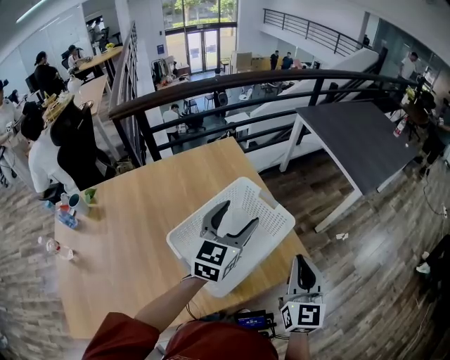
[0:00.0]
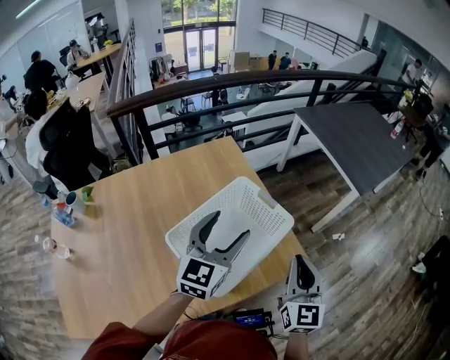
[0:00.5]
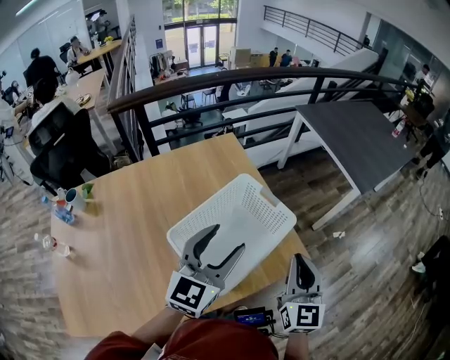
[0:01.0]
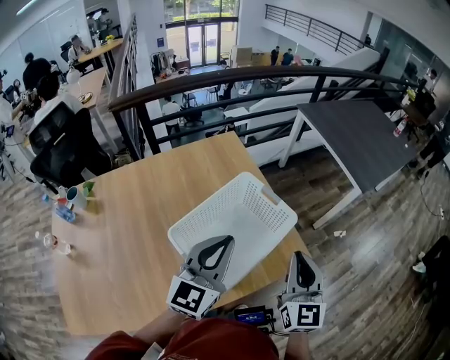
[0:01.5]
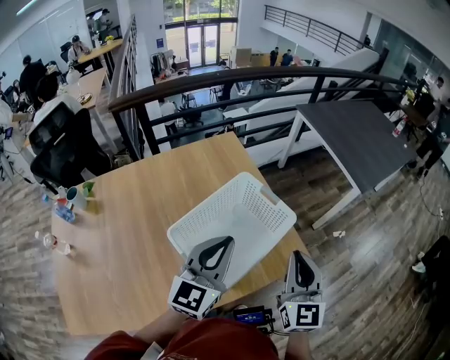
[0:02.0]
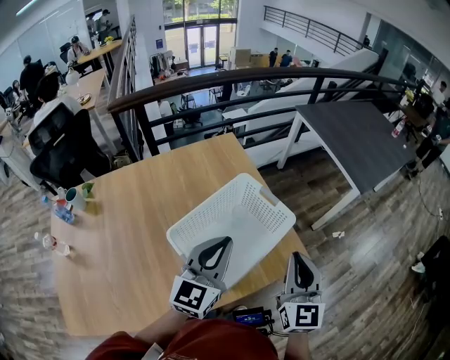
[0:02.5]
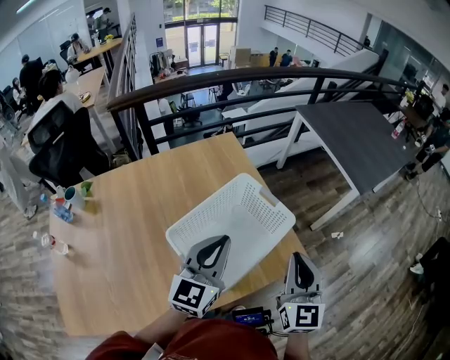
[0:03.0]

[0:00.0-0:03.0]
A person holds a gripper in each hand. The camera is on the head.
0:00.0 to 0:01.5: The left gripper shifts approximately 10 cm backward, and closes.
0:01.5 to 0:03.0: The grippers move only a little.

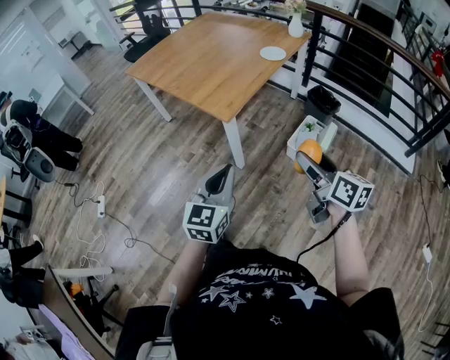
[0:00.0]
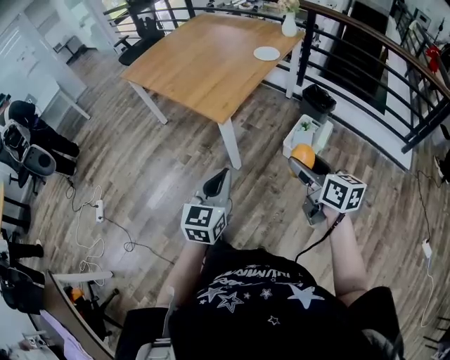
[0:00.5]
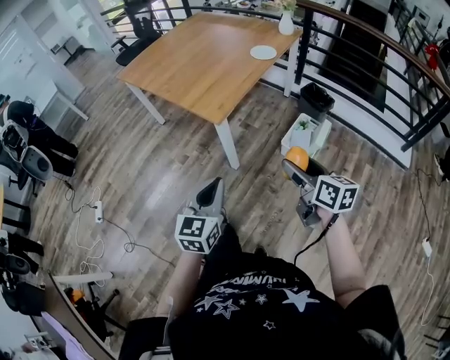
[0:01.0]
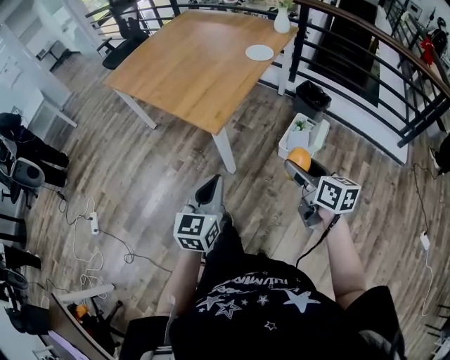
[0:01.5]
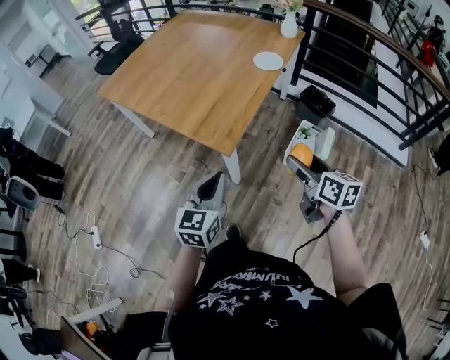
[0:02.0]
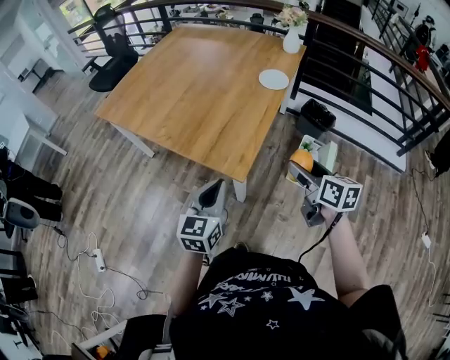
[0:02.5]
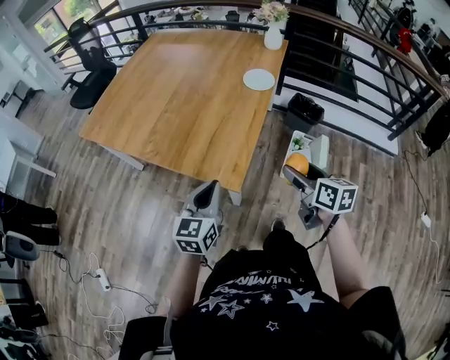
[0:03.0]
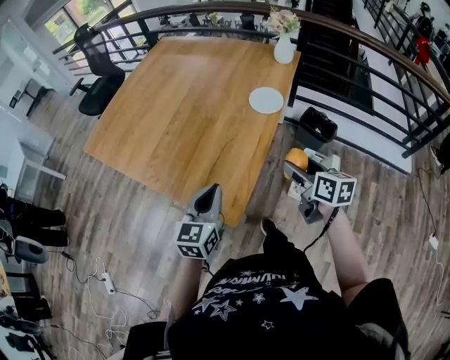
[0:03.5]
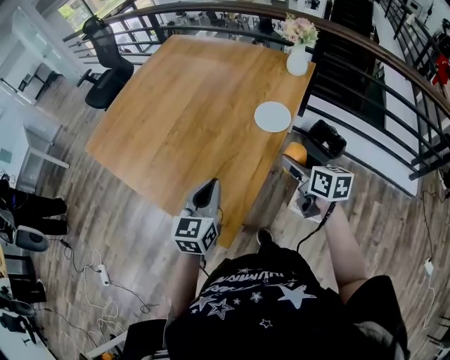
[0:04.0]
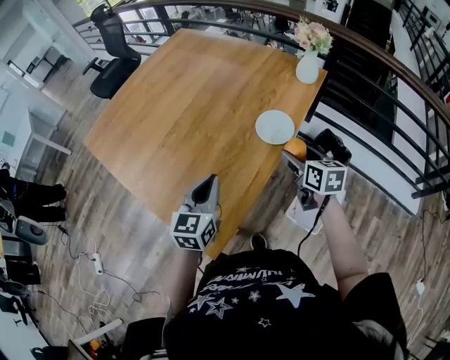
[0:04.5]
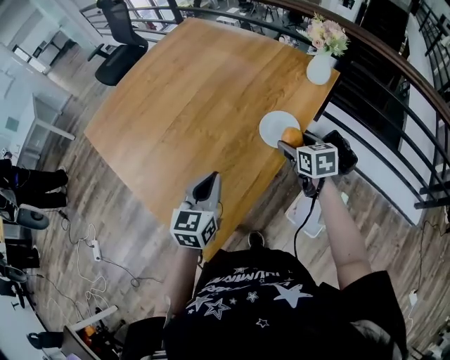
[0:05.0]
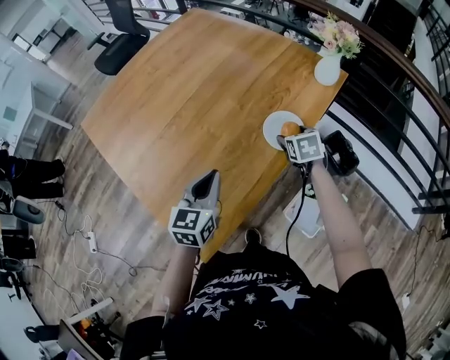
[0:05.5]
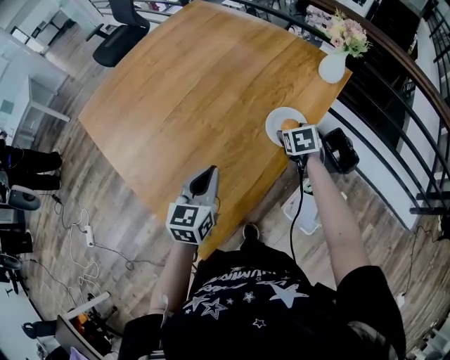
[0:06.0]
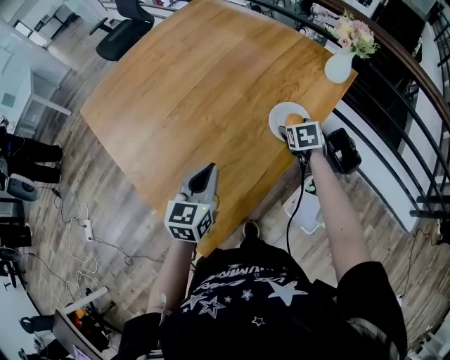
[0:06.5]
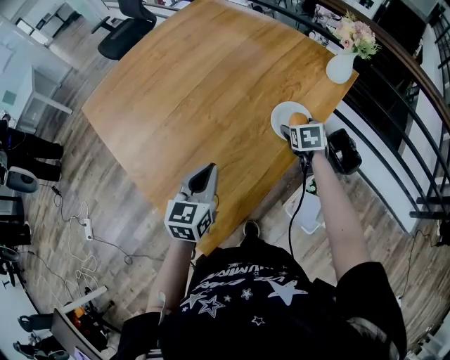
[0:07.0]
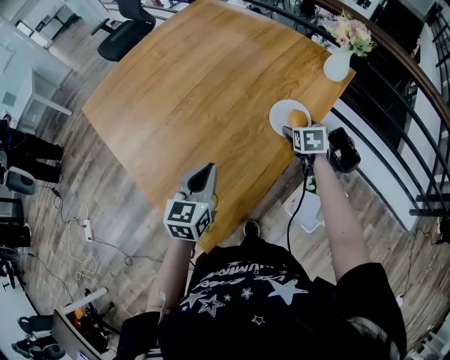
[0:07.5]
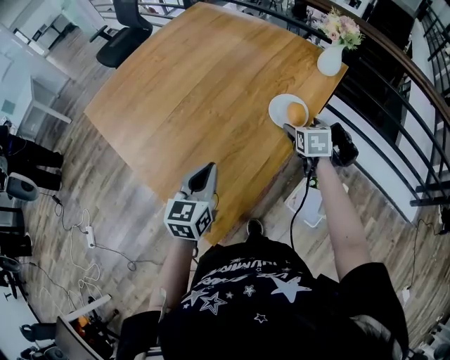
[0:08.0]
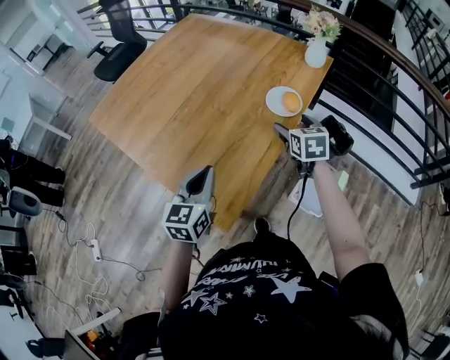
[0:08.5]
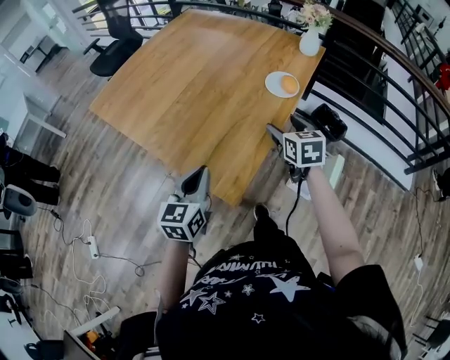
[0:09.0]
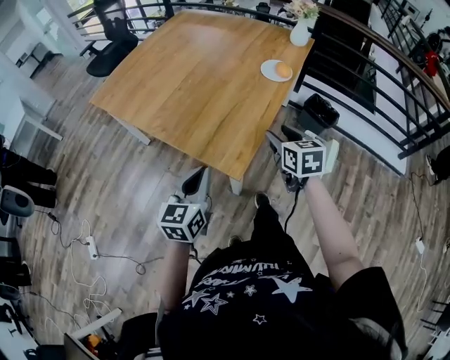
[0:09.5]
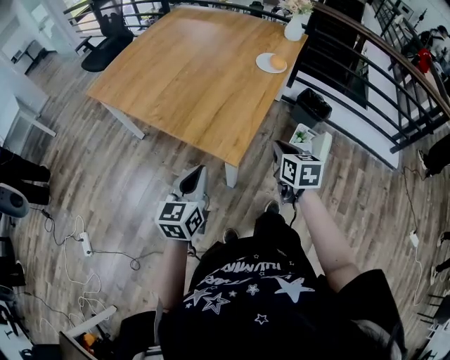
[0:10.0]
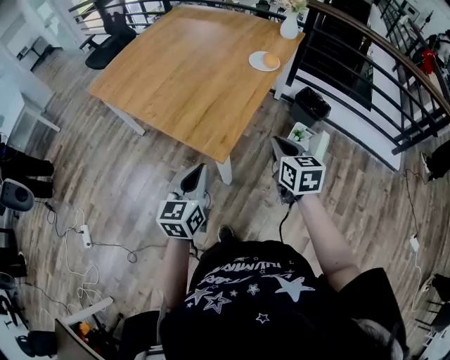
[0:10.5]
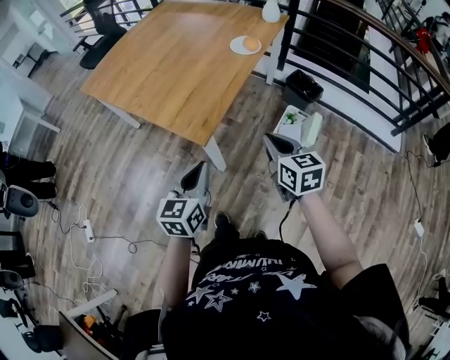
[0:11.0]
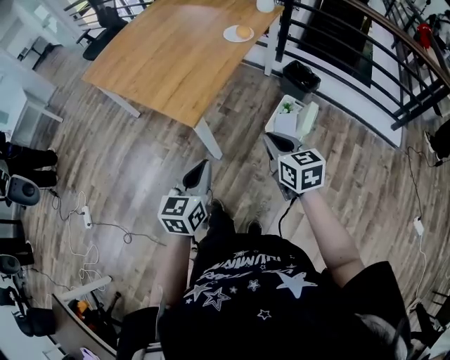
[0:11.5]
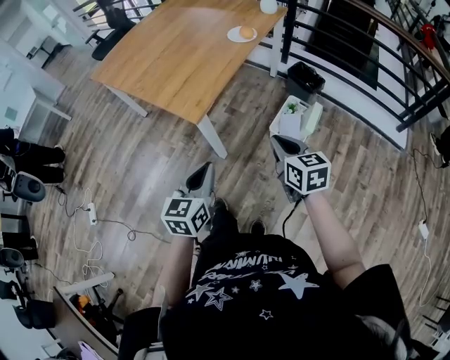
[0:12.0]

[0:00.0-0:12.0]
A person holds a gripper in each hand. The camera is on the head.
0:00.0 to 0:02.0: The two grippers go about 20 cm forward.
0:02.0 to 0:04.0: The grippers both shift forward by some 35 cm.
0:04.0 to 0:06.0: The right gripper moves forward and downward, about 25 cm, and points its fingers some 30 degrees further downward. Meanwhile the left gripper travels forward by about 10 cm.
0:06.0 to 0:08.0: The left gripper is displaced backward by about 5 cm; the right gripper goes roughly 10 cm upward and backward.
0:08.0 to 0:10.0: Both grippers move backward, approximately 35 cm. The right gripper closes its fingers.
0:10.0 to 0:12.0: The right gripper shifts about 25 cm backward and to the right. The left gripper travels to the right and backward by roughly 25 cm.

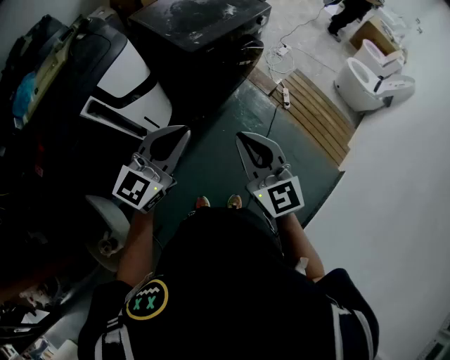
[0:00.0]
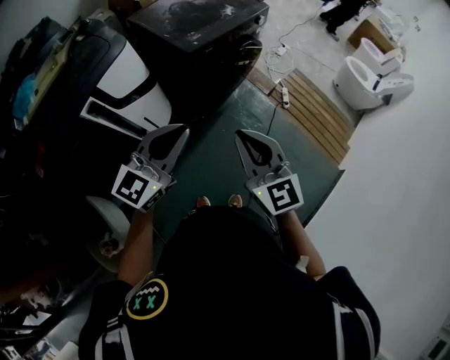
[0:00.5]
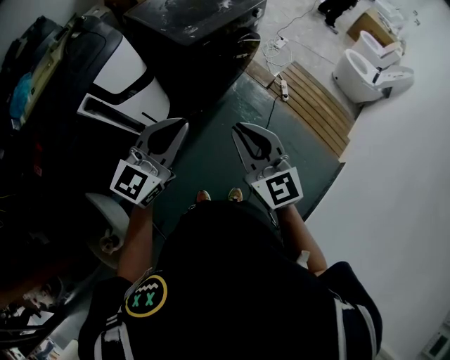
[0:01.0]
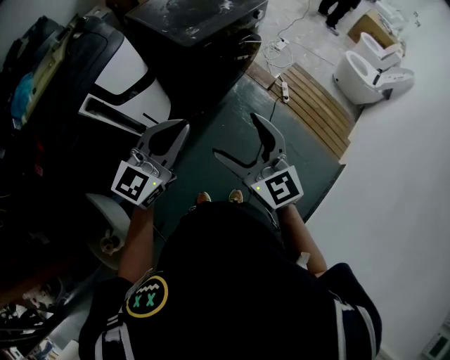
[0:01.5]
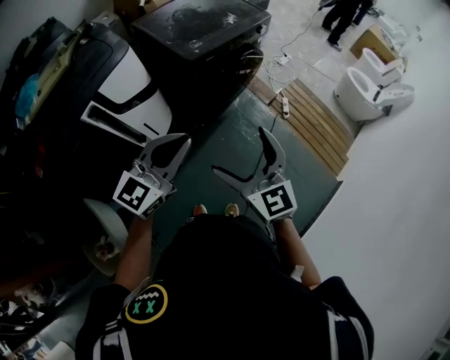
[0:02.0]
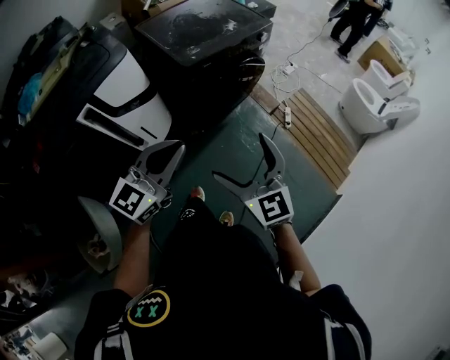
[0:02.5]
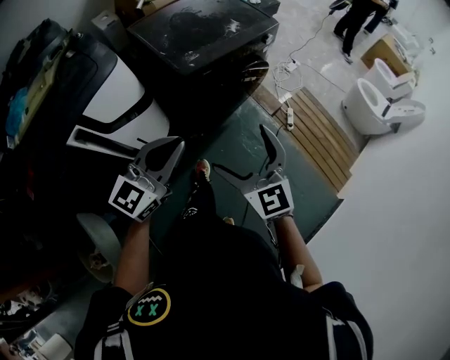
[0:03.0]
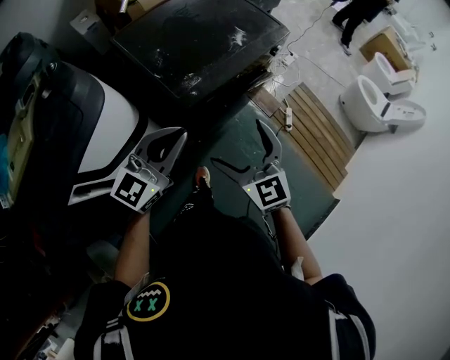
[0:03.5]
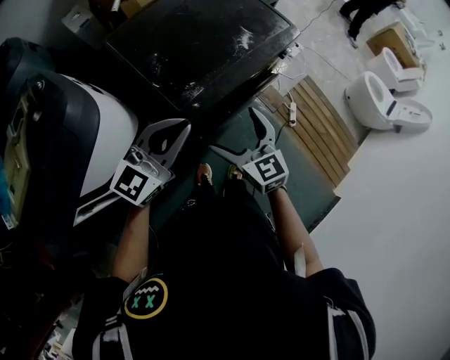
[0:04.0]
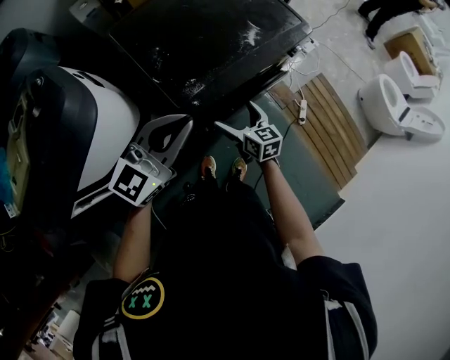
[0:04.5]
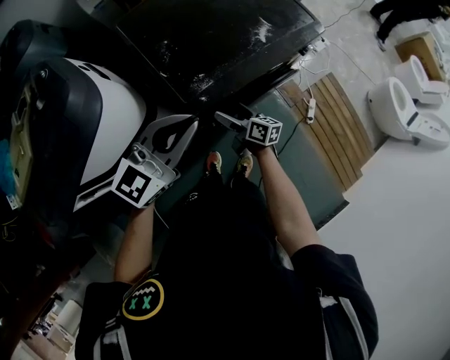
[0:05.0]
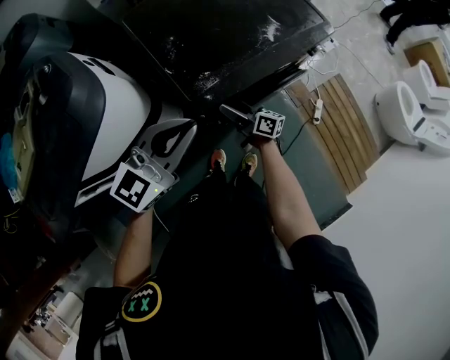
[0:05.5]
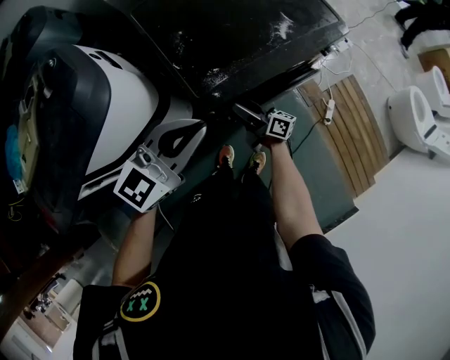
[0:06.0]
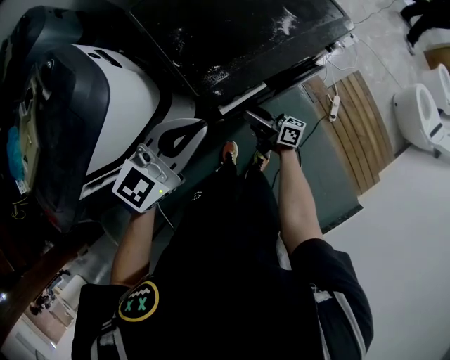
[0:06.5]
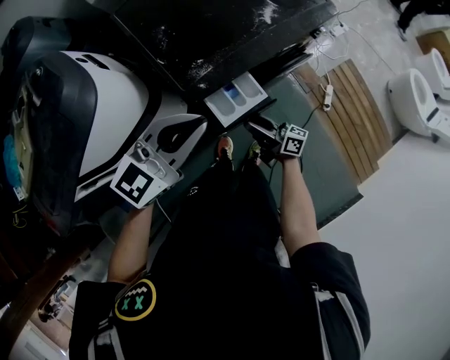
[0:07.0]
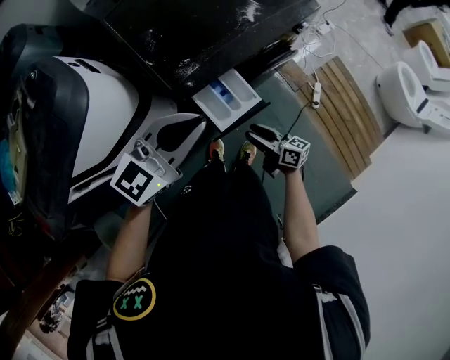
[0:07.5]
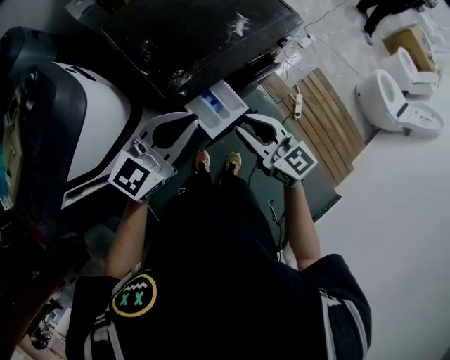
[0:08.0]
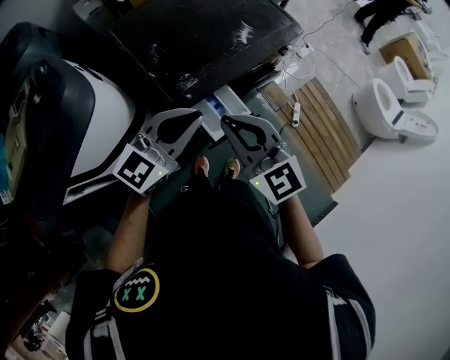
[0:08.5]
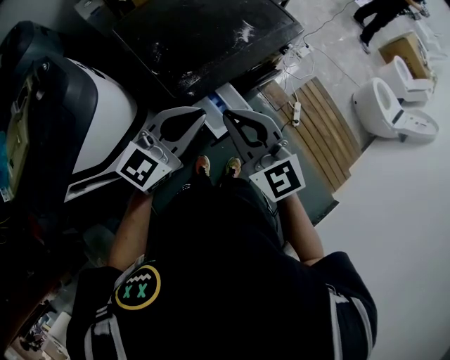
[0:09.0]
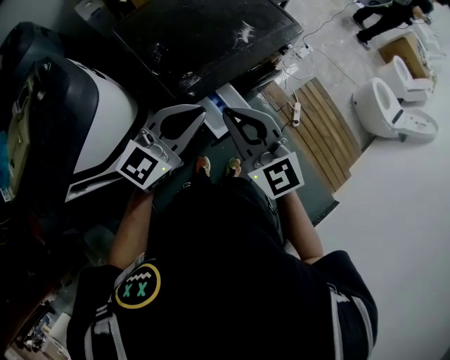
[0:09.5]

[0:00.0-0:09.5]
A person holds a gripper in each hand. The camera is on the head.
0:00.0 to 0:02.0: The right gripper opens up.
0:02.0 to 0:04.0: The two grippers travel together, forward, some 40 cm.
0:04.0 to 0:05.5: The right gripper is displaced downward and forward by some 20 cm, and rotates around the line of its fingers by roughly 60 degrees, clockwise from behind.
0:05.5 to 0:07.5: The left gripper heads to the right, covering roughly 10 cm. The right gripper travels backward and to the right by approximately 20 cm, and closes up.
0:07.5 to 0:09.5: The right gripper goes about 35 cm upward, and rolls counterclockwise, seen from behind, by some 60 degrees.

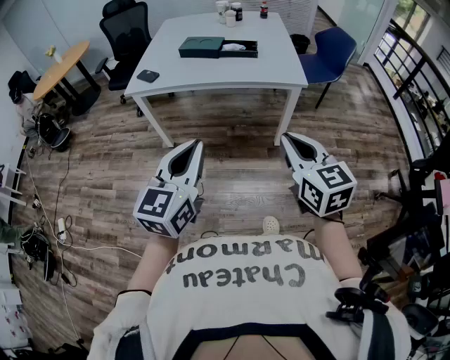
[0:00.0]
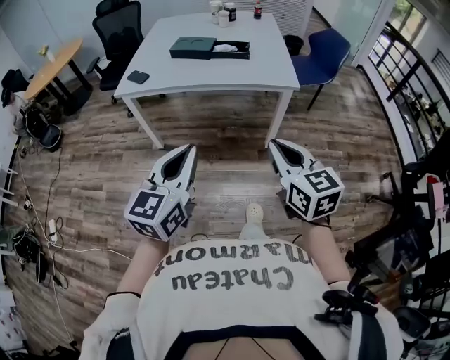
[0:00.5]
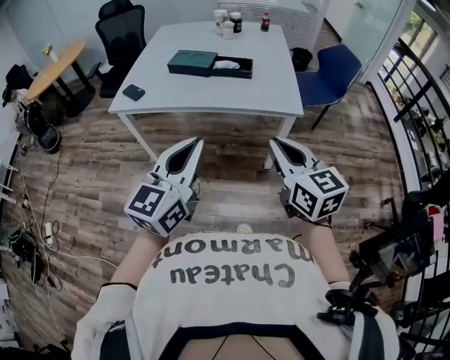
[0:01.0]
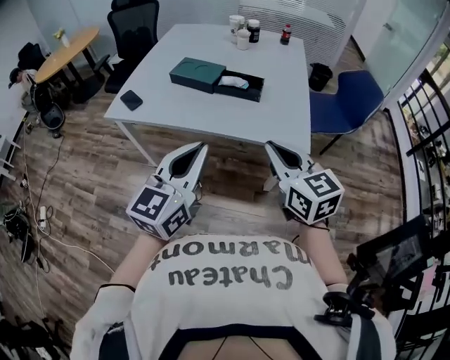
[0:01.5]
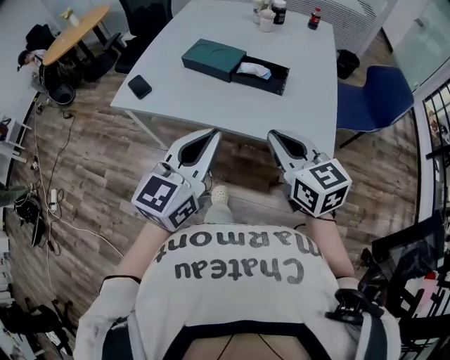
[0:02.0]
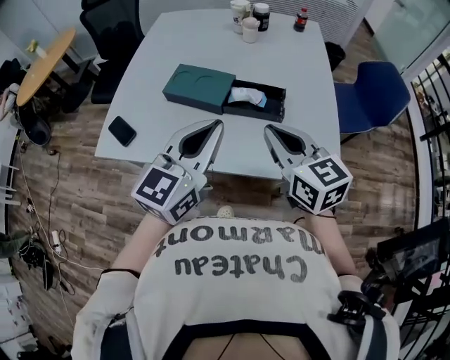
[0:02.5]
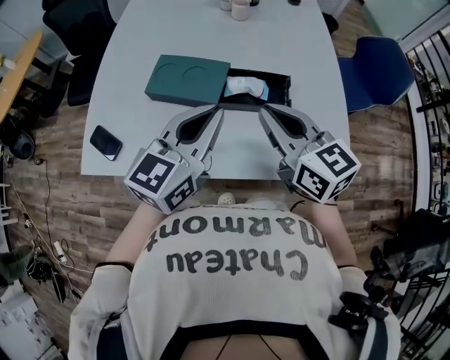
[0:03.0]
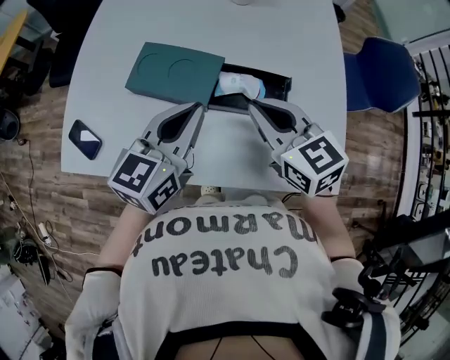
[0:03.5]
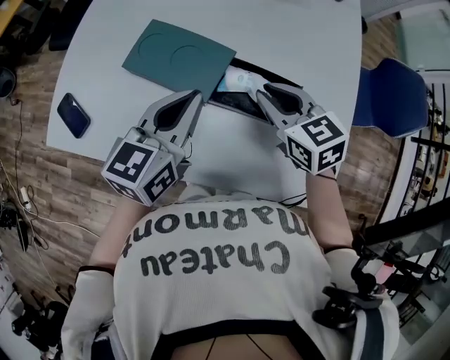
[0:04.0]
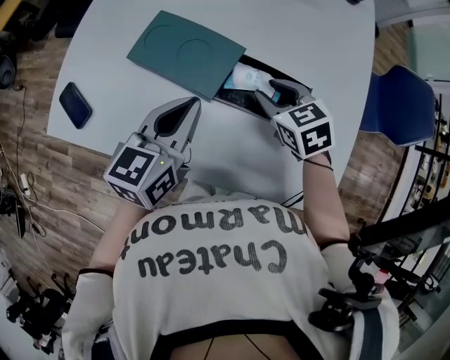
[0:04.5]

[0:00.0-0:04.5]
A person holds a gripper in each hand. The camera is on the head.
0:00.0 to 0:02.0: Both grippers travel together forward, roughly 40 cm. The right gripper rotates approximately 20 degrees.
0:02.0 to 0:04.5: The two grippers go approximately 40 cm forward and downward. The left gripper swivels roughly 20 degrees; the right gripper angles its fingers downward, by some 30 degrees, and opens its fingers.
